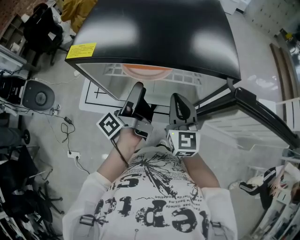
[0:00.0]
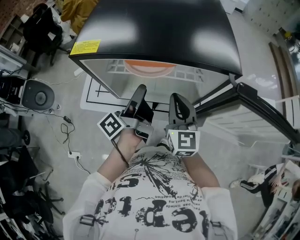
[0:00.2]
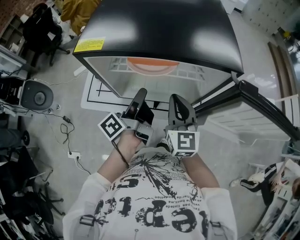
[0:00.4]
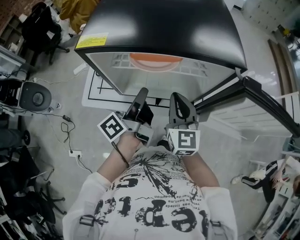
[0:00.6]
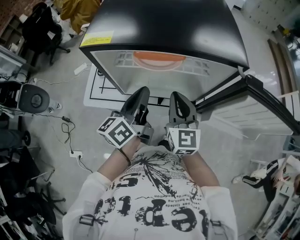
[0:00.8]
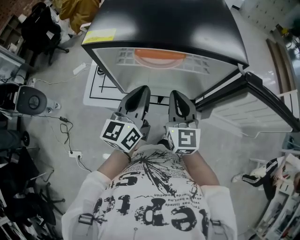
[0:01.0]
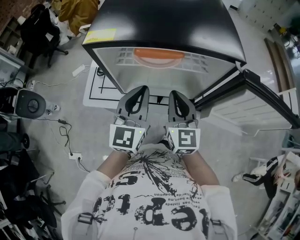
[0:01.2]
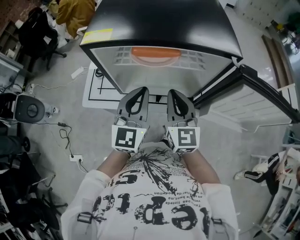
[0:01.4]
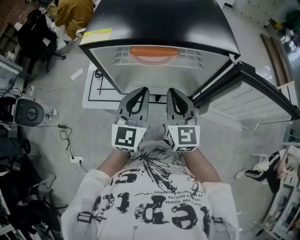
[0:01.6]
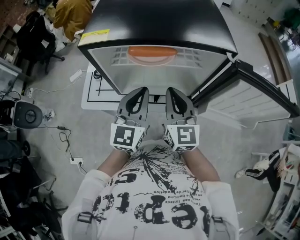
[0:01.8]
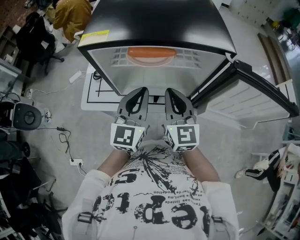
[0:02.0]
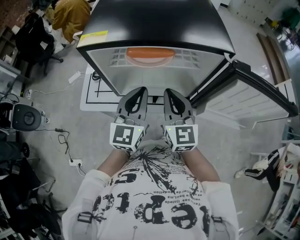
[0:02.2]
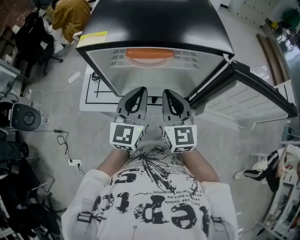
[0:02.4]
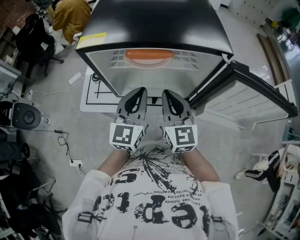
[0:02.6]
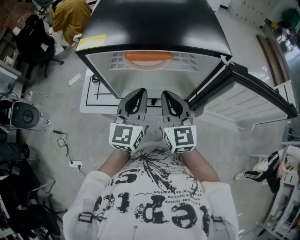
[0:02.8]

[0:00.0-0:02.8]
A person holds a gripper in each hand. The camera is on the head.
0:00.0 to 0:01.4: The right gripper moves roughly 5 cm.

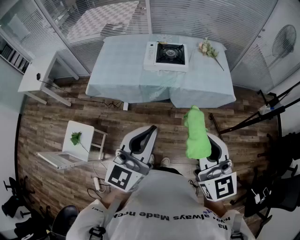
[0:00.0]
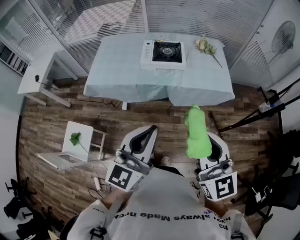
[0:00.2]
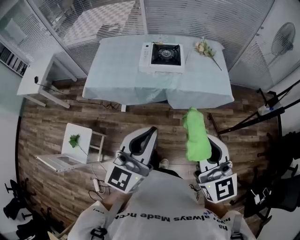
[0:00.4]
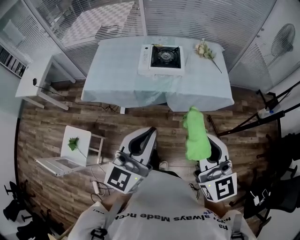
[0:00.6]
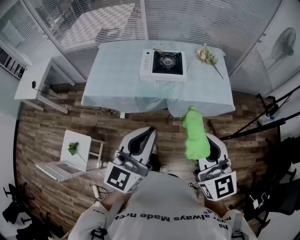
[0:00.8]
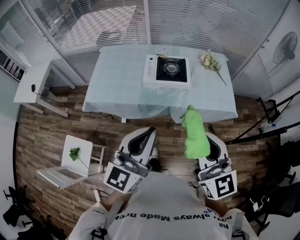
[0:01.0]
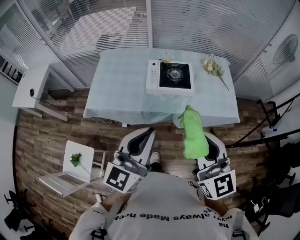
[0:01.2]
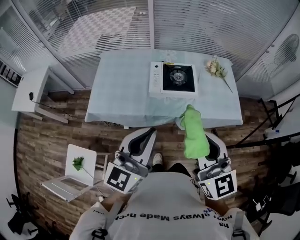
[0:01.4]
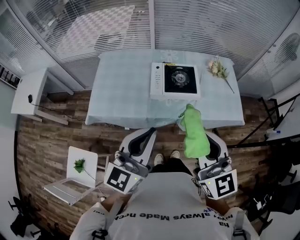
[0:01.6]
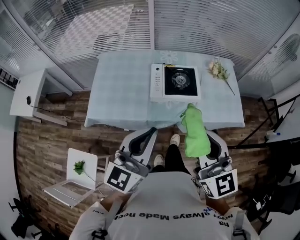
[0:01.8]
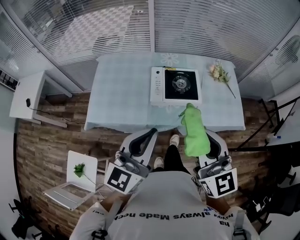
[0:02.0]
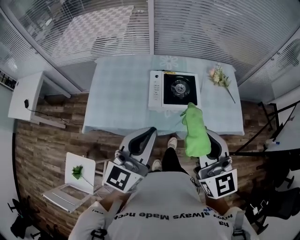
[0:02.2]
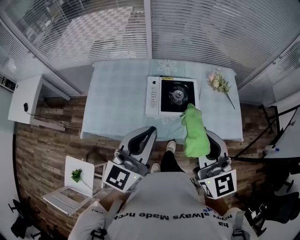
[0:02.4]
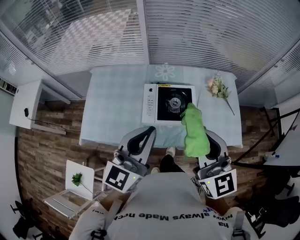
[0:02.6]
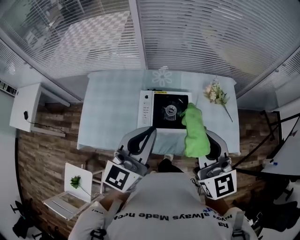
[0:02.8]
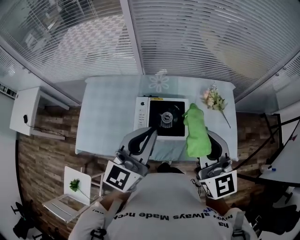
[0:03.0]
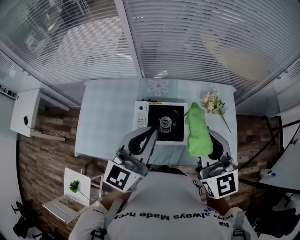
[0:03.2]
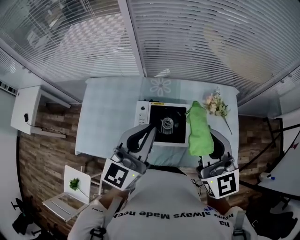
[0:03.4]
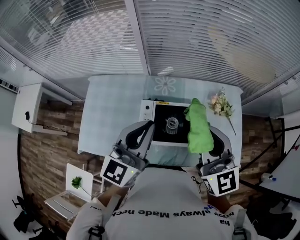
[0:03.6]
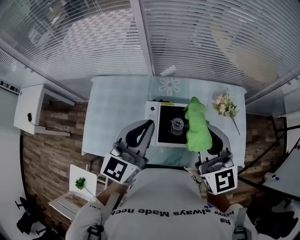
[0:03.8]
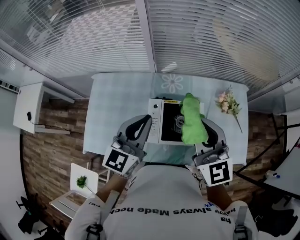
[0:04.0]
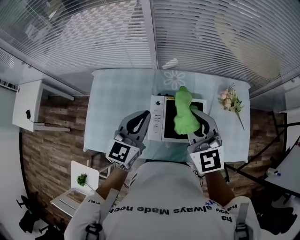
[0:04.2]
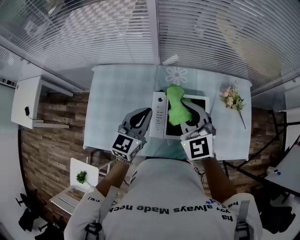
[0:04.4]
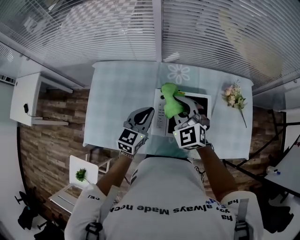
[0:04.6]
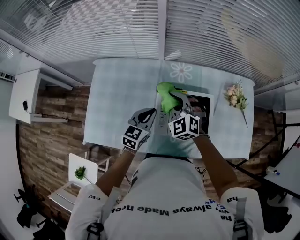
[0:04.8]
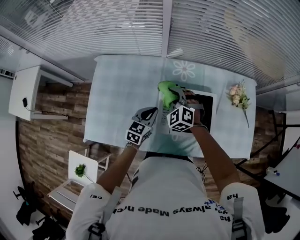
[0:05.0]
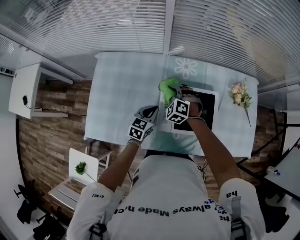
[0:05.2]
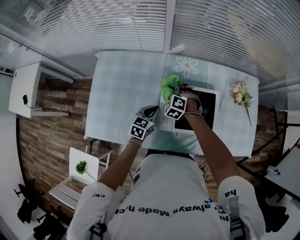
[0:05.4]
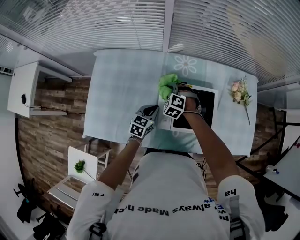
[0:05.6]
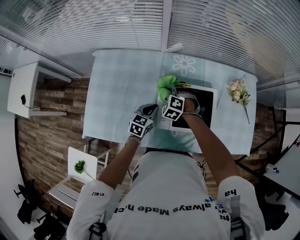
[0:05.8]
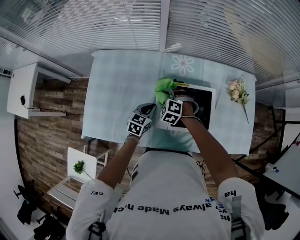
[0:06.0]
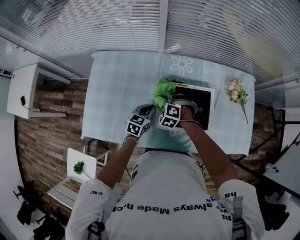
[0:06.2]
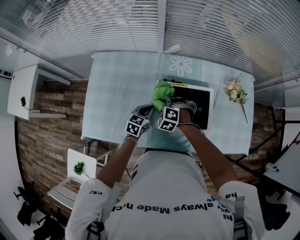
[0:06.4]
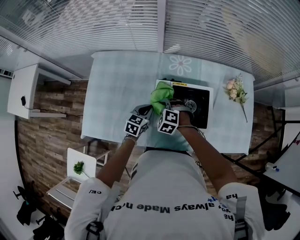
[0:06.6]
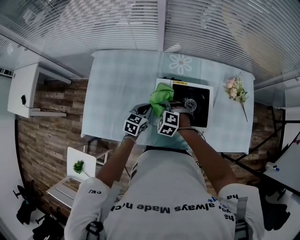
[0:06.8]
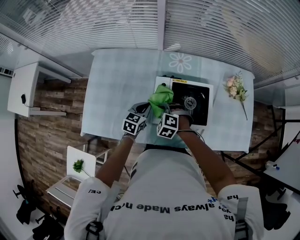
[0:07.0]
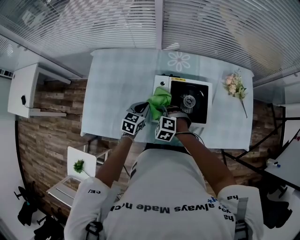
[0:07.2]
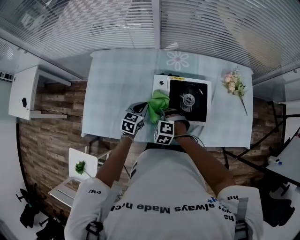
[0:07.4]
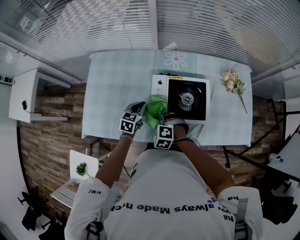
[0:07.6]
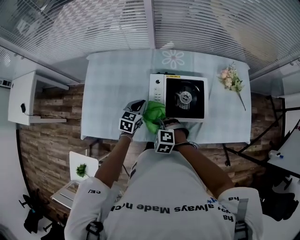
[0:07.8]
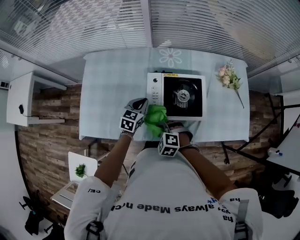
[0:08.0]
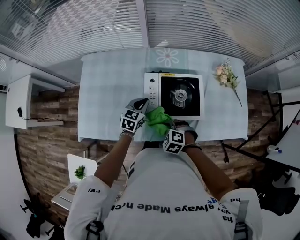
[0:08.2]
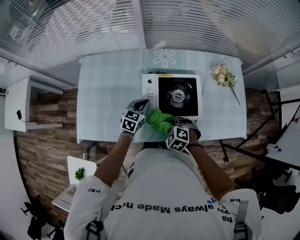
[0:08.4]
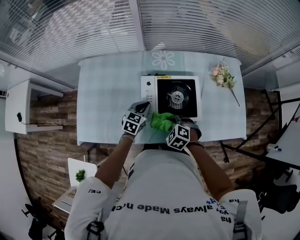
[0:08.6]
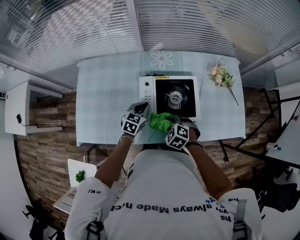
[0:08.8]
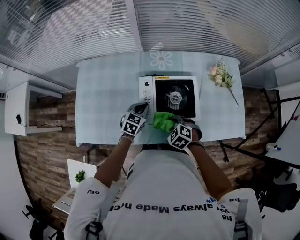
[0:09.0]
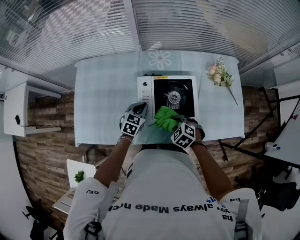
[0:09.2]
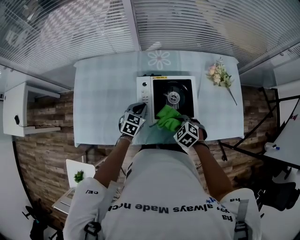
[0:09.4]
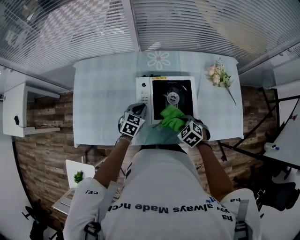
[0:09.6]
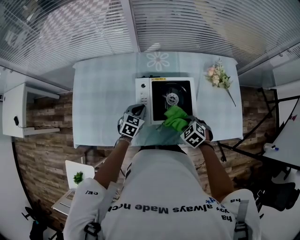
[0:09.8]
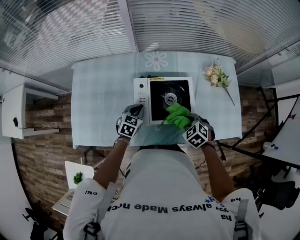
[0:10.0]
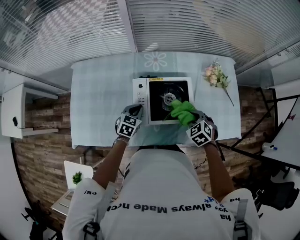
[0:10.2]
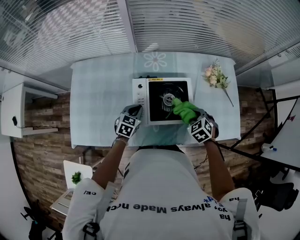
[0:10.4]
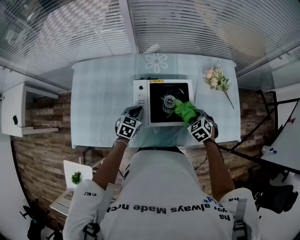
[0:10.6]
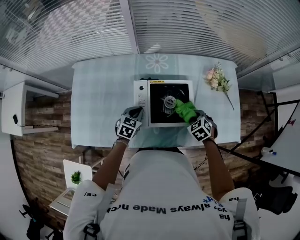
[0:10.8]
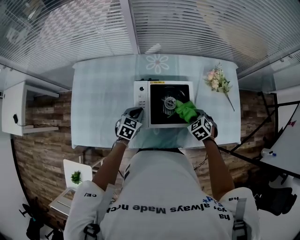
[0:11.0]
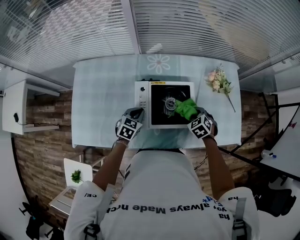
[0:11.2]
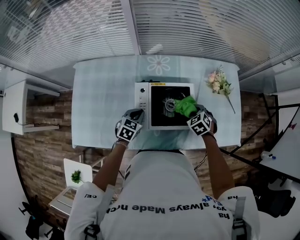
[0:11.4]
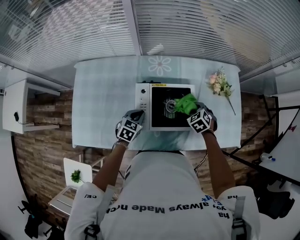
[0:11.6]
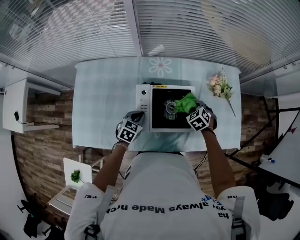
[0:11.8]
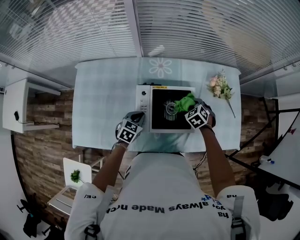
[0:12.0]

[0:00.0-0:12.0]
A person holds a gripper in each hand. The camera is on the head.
0:00.0 to 0:01.6: Both grippers move forward and to the left, some 25 cm.
0:01.6 to 0:03.0: The grippers both shift forward by some 30 cm.
0:03.0 to 0:04.4: The right gripper travels to the left, forward and downward by about 25 cm, and changes its angle by about 30 degrees. Meanwhile the left gripper travels downward, to the left and forward by approximately 25 cm.
0:04.4 to 0:06.0: The two grippers go some 25 cm downward. The right gripper angles its fingers downward, by about 40 degrees. Meanwhile the left gripper swivels about 20 degrees.
0:06.0 to 0:07.6: The right gripper travels backward by some 15 cm.
0:07.6 to 0:09.0: The left gripper shifts about 10 cm to the right; the right gripper moves to the right, about 15 cm, and swivels approximately 20 degrees.
0:09.0 to 0:10.4: The right gripper heads to the right and forward, covering approximately 15 cm.
0:10.4 to 0:12.0: The right gripper goes some 10 cm forward.

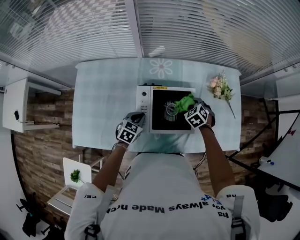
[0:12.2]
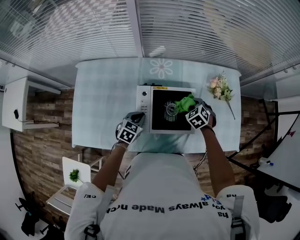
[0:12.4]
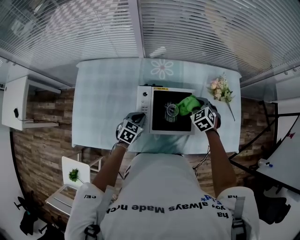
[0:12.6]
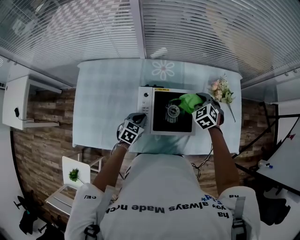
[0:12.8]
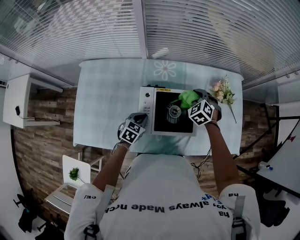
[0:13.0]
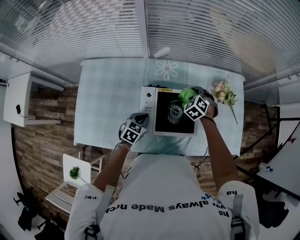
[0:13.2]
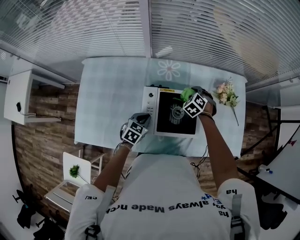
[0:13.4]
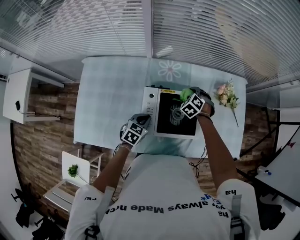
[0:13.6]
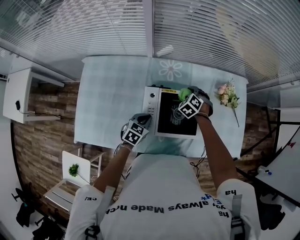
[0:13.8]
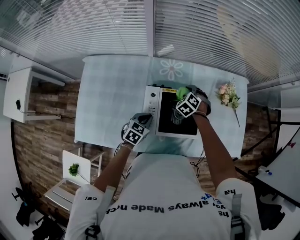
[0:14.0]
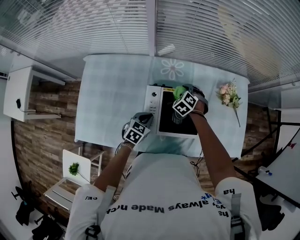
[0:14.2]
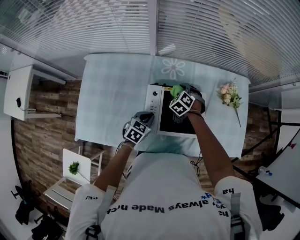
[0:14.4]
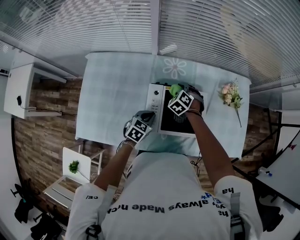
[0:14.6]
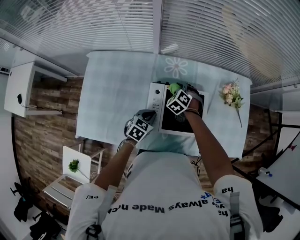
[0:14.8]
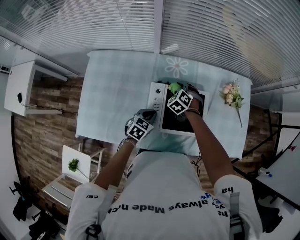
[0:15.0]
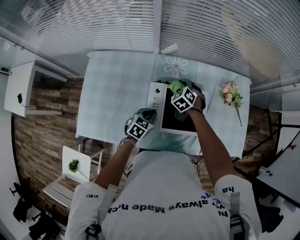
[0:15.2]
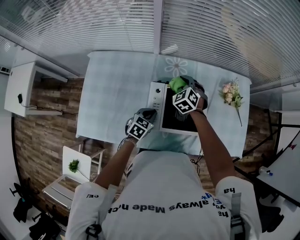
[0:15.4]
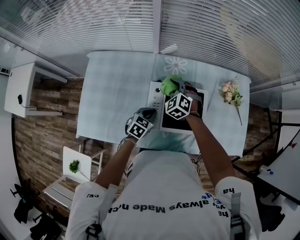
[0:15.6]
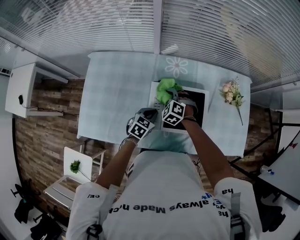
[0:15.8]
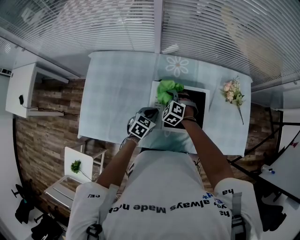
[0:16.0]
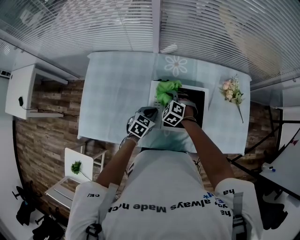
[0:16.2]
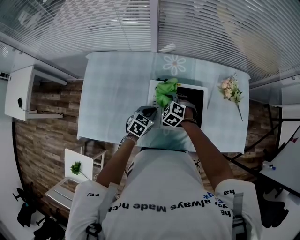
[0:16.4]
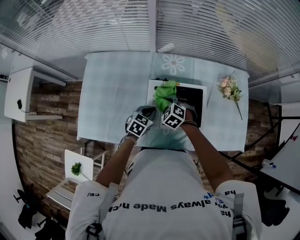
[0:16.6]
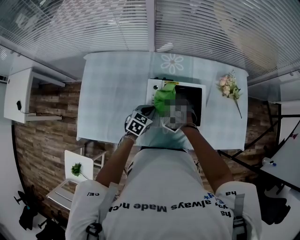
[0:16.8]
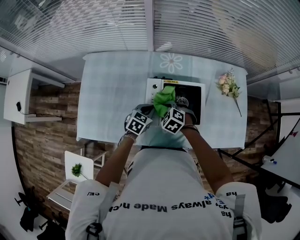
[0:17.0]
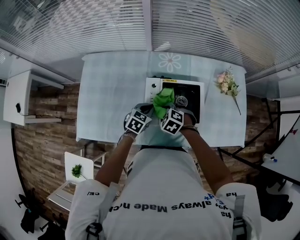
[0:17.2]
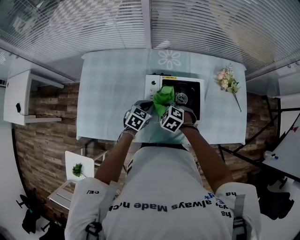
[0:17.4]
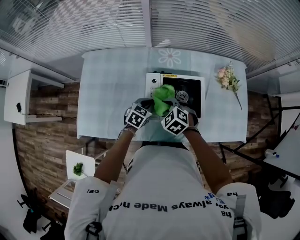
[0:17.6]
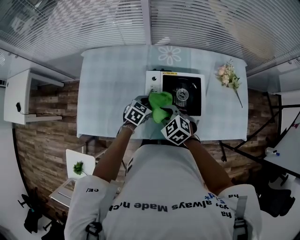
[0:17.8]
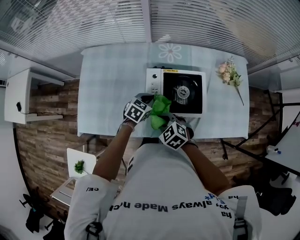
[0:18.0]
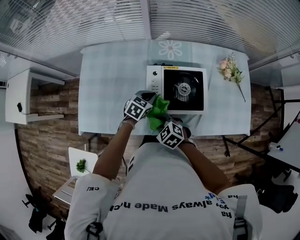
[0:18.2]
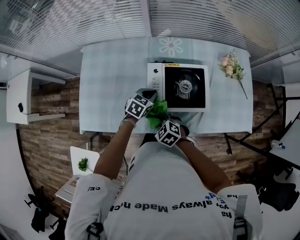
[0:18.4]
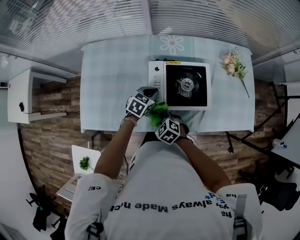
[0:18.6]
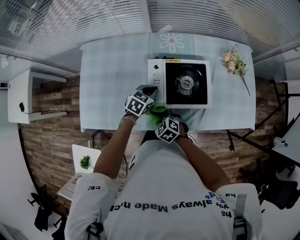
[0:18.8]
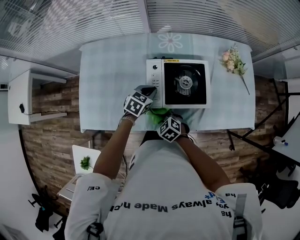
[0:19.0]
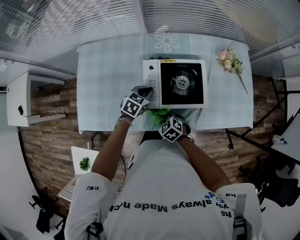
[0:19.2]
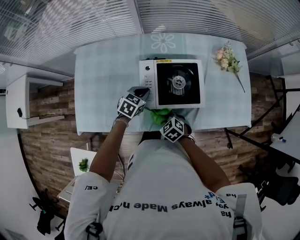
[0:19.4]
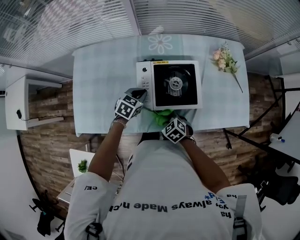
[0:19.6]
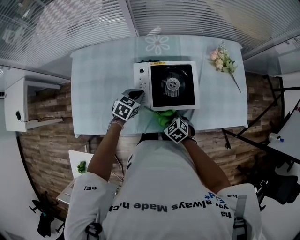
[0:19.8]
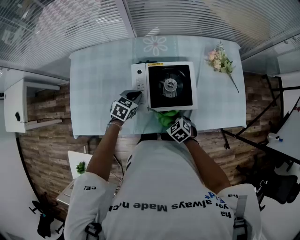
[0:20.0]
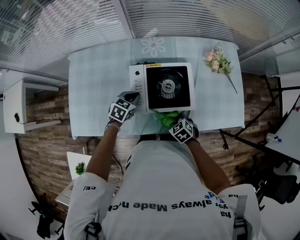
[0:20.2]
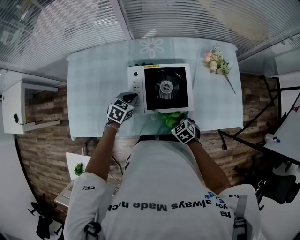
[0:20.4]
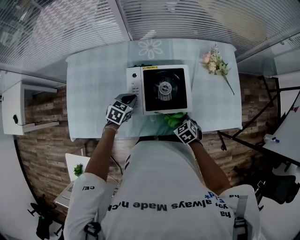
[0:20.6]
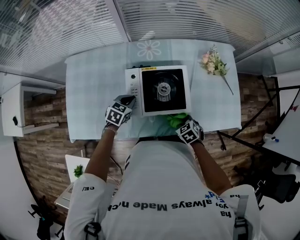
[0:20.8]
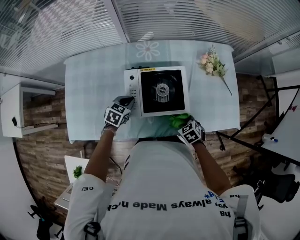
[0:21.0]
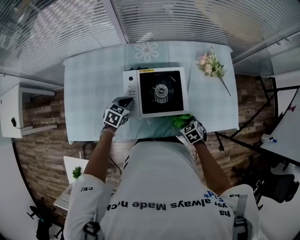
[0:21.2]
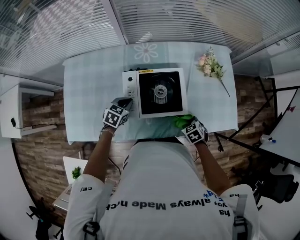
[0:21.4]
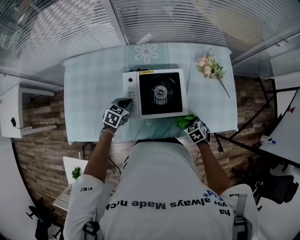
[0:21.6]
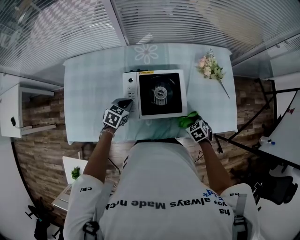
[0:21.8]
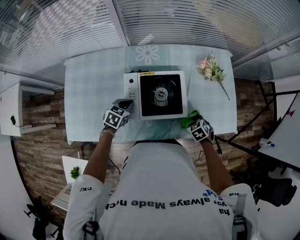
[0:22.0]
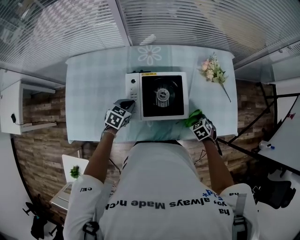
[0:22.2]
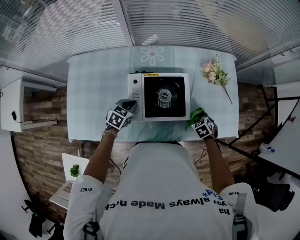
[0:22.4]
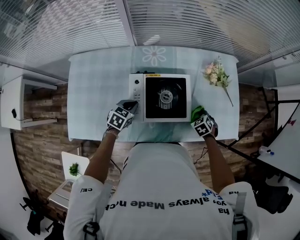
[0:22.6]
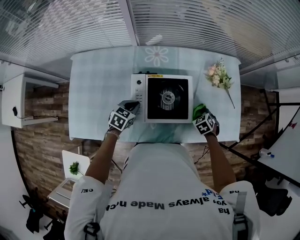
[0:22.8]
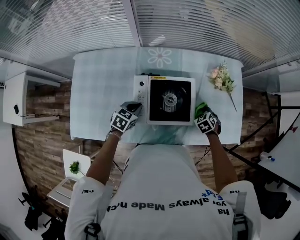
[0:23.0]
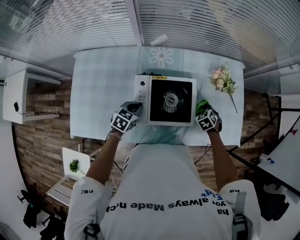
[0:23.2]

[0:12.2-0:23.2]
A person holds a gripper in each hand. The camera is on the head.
0:12.2 to 0:13.8: The right gripper moves to the left and forward, roughly 10 cm.
0:13.8 to 0:15.4: The right gripper moves to the left and upward, some 10 cm.
0:15.4 to 0:17.0: The right gripper shifts some 20 cm backward, and turns by some 30 degrees.
0:17.0 to 0:18.4: The right gripper heads backward and to the left, covering approximately 15 cm.
0:18.4 to 0:20.0: The right gripper moves to the right, approximately 15 cm.
0:20.0 to 0:21.6: The right gripper shifts roughly 15 cm to the right.
0:21.6 to 0:23.2: The right gripper goes approximately 15 cm forward.
